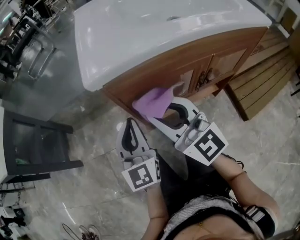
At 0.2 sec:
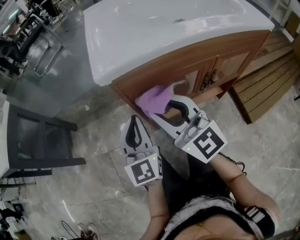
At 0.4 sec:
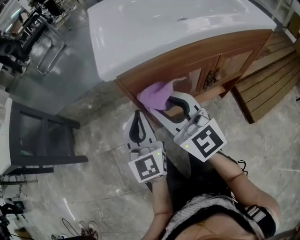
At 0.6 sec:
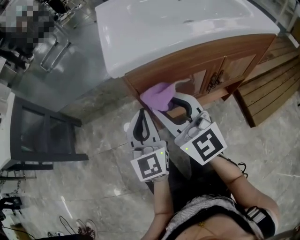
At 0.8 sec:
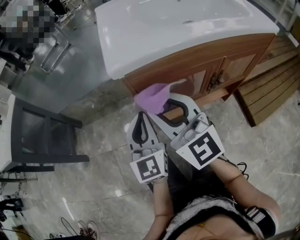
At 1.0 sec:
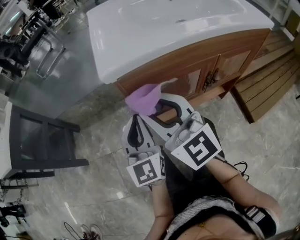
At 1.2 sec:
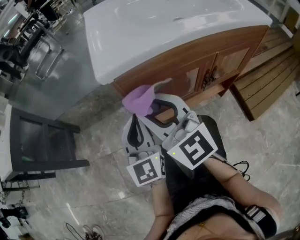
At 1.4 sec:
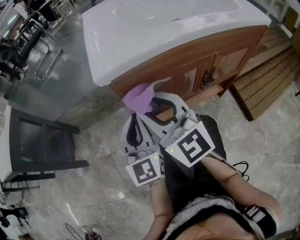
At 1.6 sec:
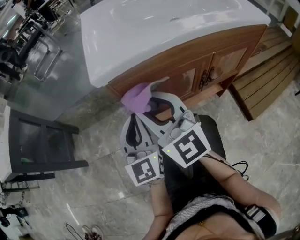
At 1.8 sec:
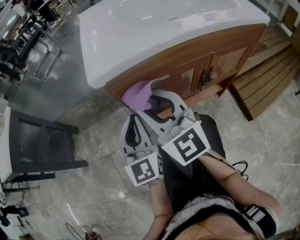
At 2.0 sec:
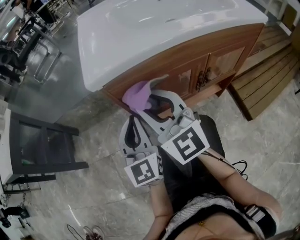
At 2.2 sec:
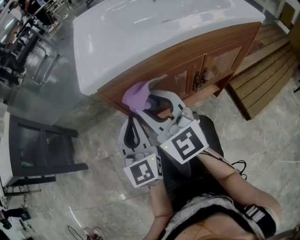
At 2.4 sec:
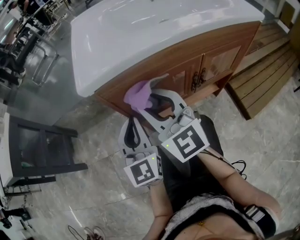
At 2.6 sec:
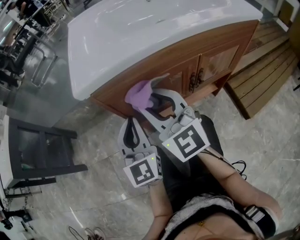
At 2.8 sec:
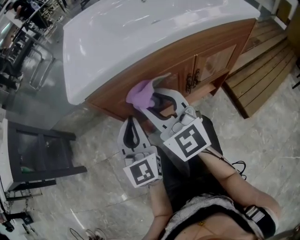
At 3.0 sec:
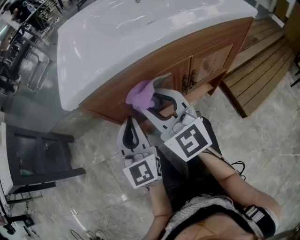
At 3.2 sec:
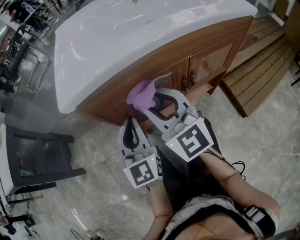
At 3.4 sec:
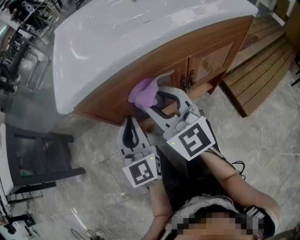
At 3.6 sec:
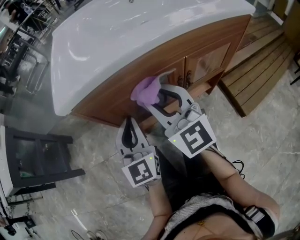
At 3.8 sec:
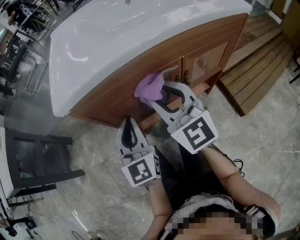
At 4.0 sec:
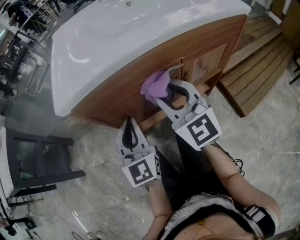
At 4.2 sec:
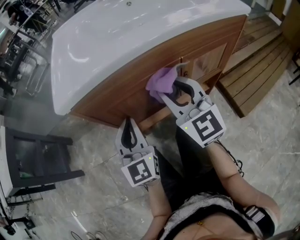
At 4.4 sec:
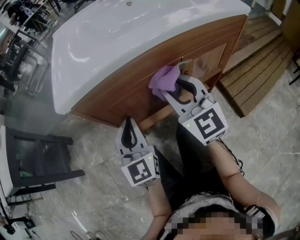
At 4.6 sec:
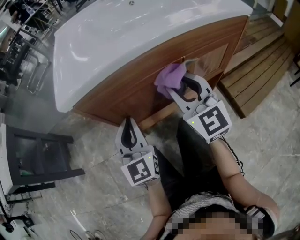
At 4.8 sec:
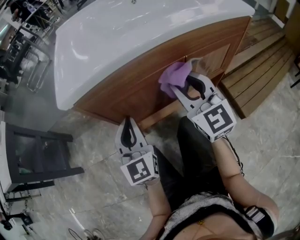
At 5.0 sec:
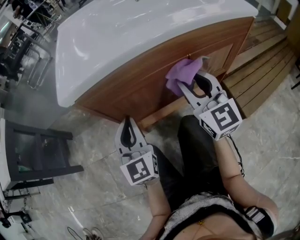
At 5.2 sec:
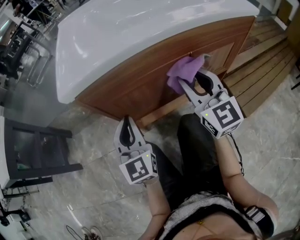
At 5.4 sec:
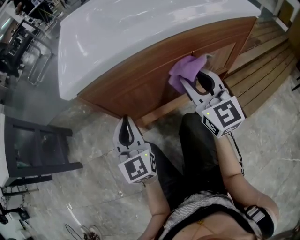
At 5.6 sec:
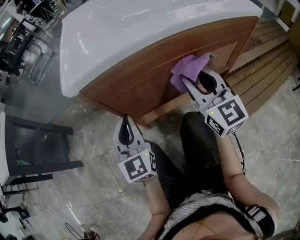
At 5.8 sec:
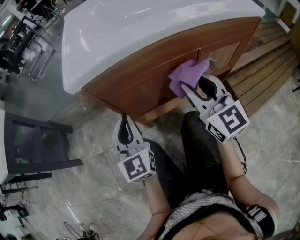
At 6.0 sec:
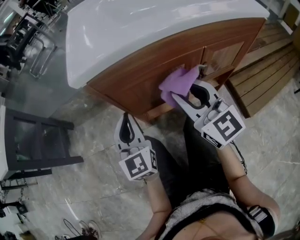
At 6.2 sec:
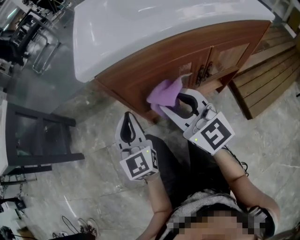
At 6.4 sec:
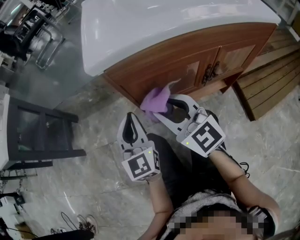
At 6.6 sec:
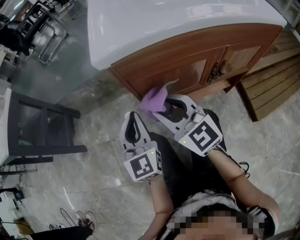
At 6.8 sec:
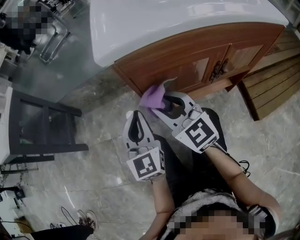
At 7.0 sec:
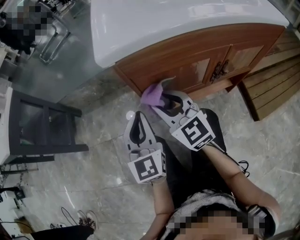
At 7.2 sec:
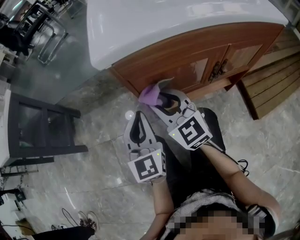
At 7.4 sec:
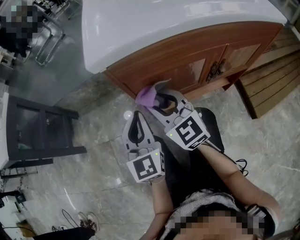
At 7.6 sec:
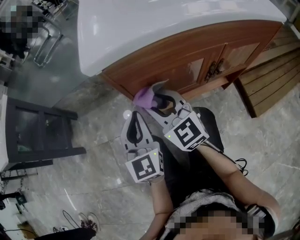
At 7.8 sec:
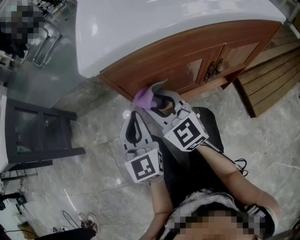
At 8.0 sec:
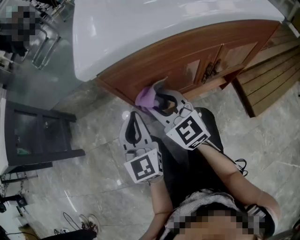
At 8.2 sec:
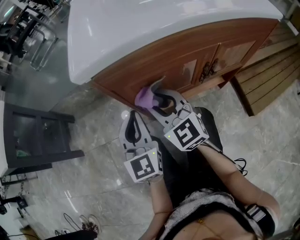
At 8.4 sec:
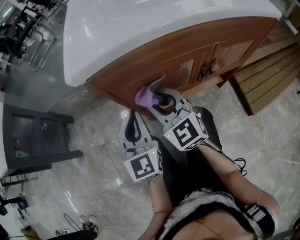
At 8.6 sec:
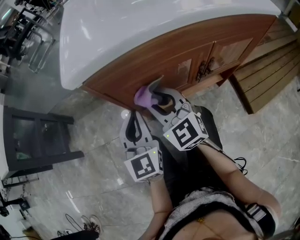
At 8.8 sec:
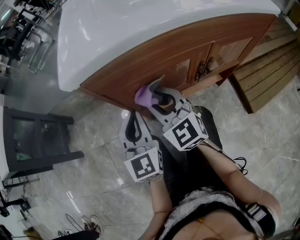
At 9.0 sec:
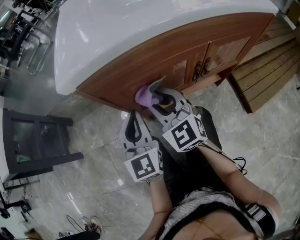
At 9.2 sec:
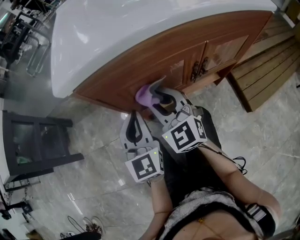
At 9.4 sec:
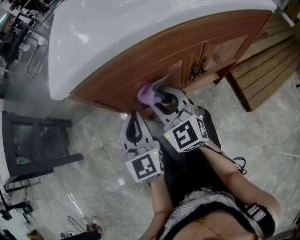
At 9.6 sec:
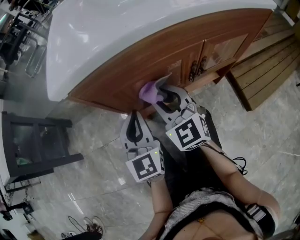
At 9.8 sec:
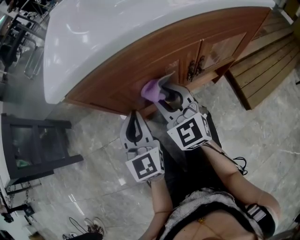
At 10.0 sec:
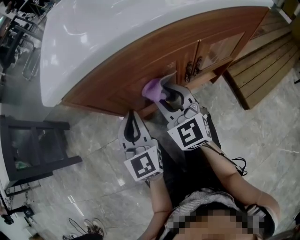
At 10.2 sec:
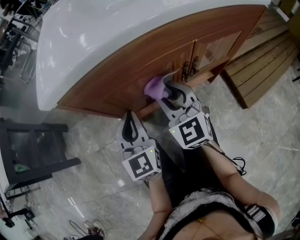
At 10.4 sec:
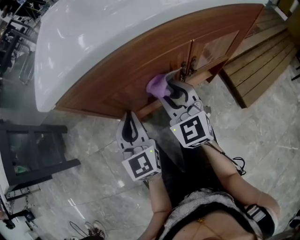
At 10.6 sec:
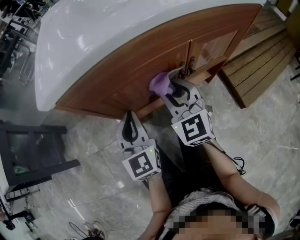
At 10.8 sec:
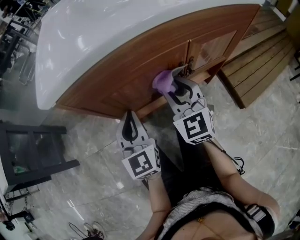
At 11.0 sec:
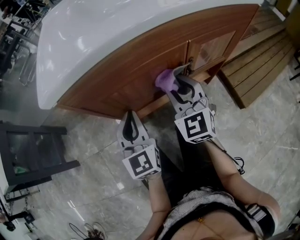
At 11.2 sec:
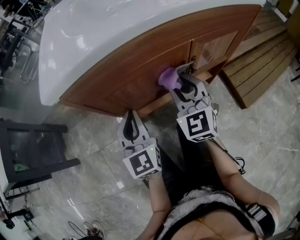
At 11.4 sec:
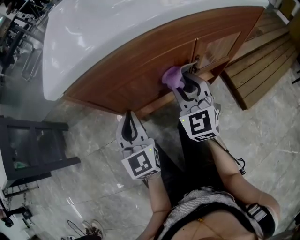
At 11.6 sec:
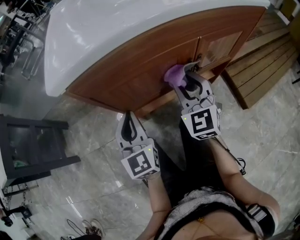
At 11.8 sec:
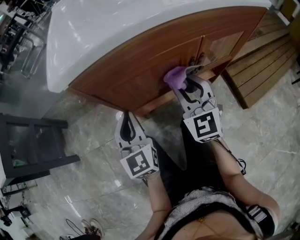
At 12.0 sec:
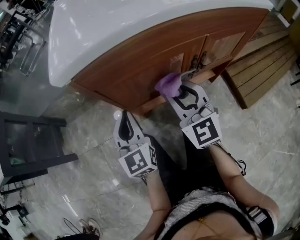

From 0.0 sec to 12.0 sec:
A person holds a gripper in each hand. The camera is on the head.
From 0.0 sec to 1.6 sec: There are only small adjustments of the grippers.
From 1.6 sec to 3.0 sec: Both grippers travel together to the right, roughly 5 cm.
From 3.0 sec to 4.4 sec: The right gripper moves to the right, approximately 10 cm.
From 4.4 sec to 6.0 sec: The right gripper ends up approximately 5 cm from where it was. The left gripper is displaced to the left by approximately 5 cm.
From 6.0 sec to 7.6 sec: The right gripper travels to the left, downward and forward by roughly 15 cm.
From 7.6 sec to 9.0 sec: The right gripper travels to the right by approximately 5 cm.
From 9.0 sec to 10.4 sec: The right gripper goes about 10 cm to the right.
From 10.4 sec to 12.0 sec: The left gripper shifts roughly 5 cm to the left.

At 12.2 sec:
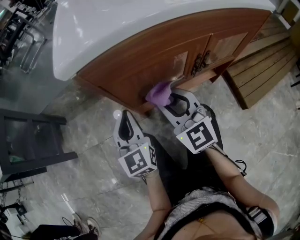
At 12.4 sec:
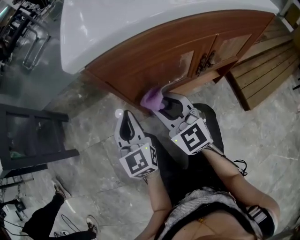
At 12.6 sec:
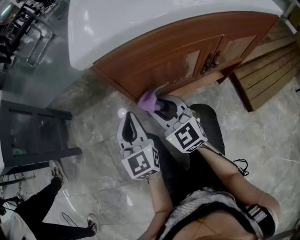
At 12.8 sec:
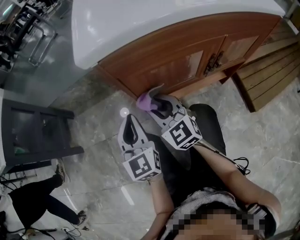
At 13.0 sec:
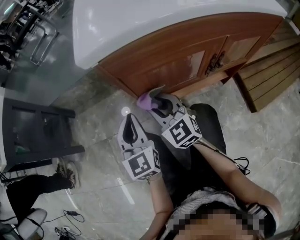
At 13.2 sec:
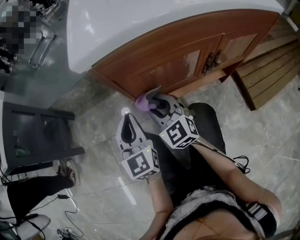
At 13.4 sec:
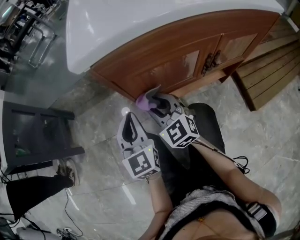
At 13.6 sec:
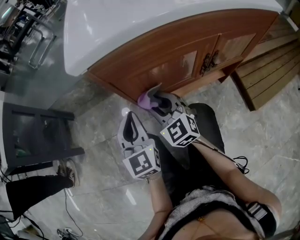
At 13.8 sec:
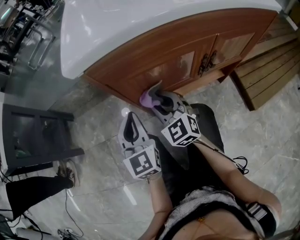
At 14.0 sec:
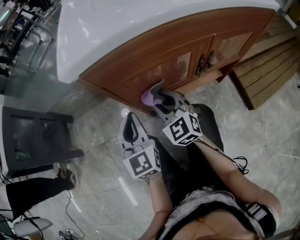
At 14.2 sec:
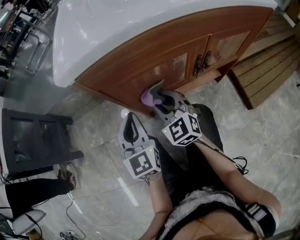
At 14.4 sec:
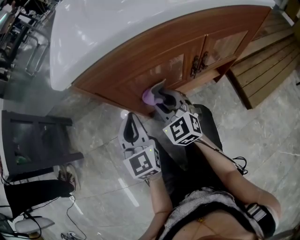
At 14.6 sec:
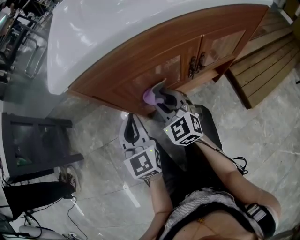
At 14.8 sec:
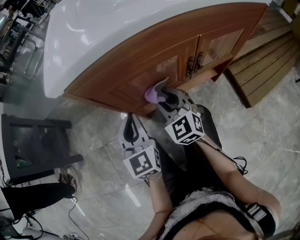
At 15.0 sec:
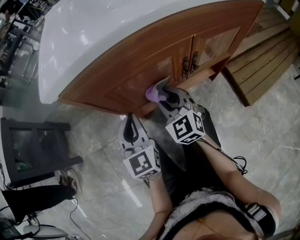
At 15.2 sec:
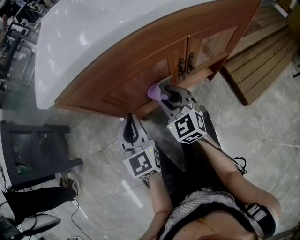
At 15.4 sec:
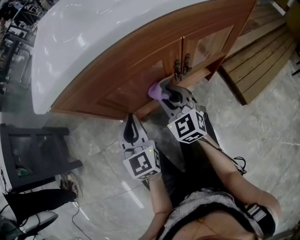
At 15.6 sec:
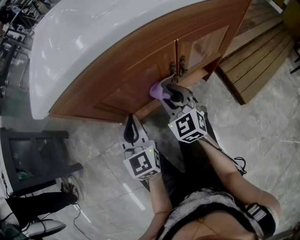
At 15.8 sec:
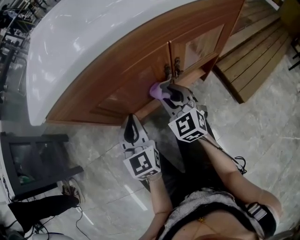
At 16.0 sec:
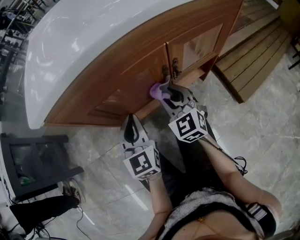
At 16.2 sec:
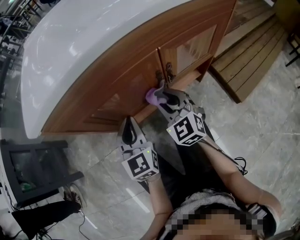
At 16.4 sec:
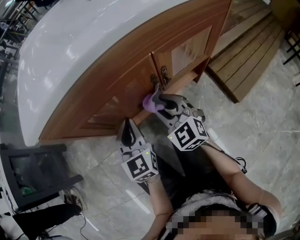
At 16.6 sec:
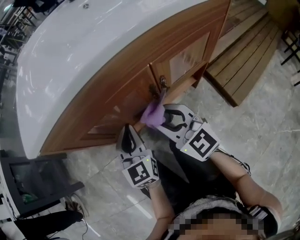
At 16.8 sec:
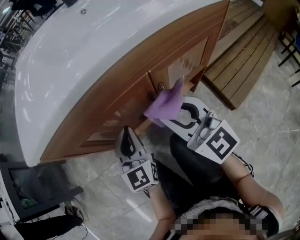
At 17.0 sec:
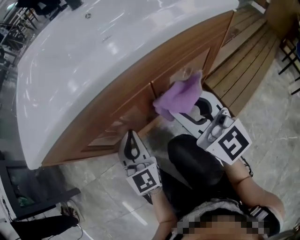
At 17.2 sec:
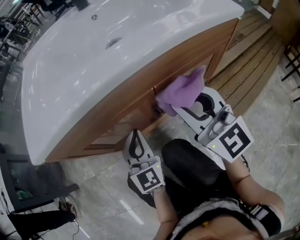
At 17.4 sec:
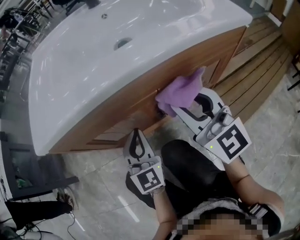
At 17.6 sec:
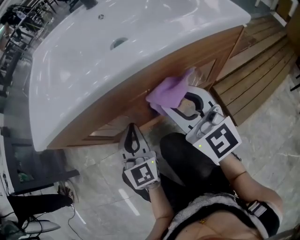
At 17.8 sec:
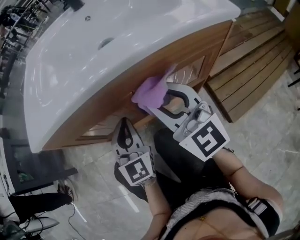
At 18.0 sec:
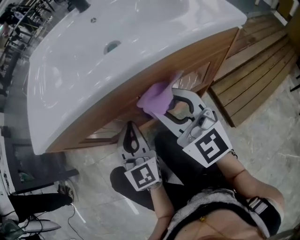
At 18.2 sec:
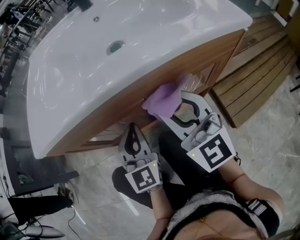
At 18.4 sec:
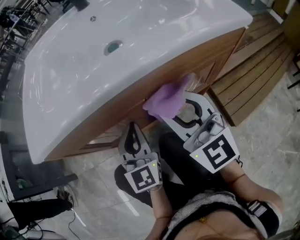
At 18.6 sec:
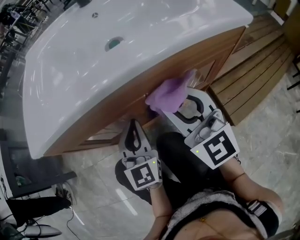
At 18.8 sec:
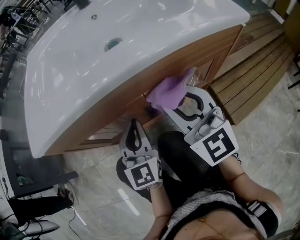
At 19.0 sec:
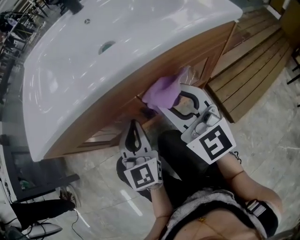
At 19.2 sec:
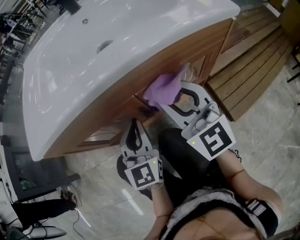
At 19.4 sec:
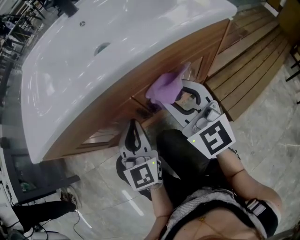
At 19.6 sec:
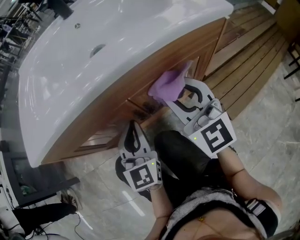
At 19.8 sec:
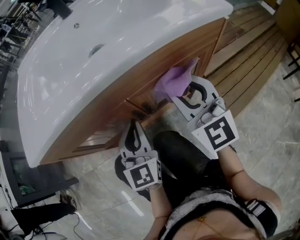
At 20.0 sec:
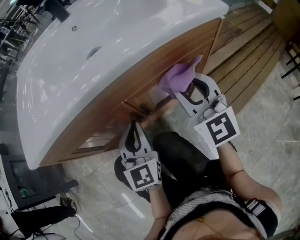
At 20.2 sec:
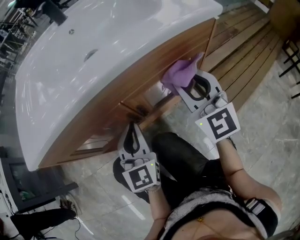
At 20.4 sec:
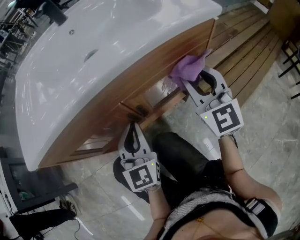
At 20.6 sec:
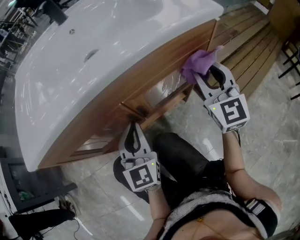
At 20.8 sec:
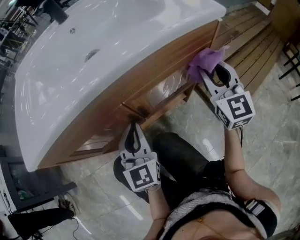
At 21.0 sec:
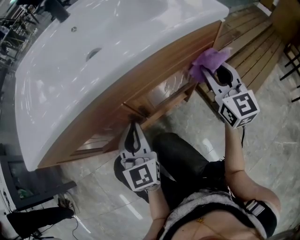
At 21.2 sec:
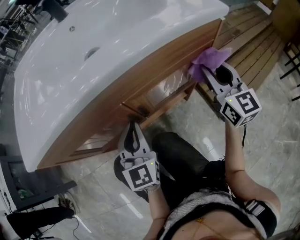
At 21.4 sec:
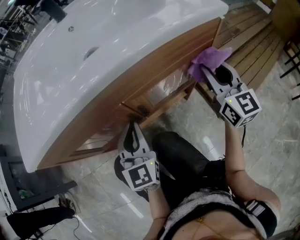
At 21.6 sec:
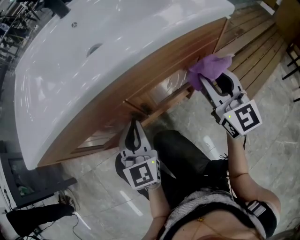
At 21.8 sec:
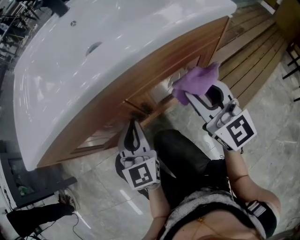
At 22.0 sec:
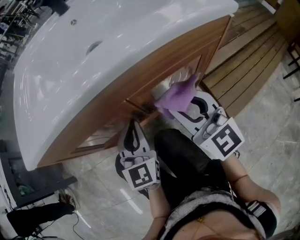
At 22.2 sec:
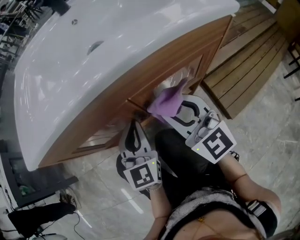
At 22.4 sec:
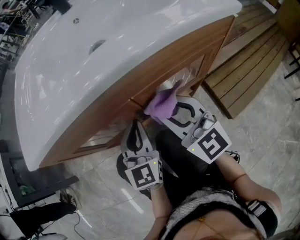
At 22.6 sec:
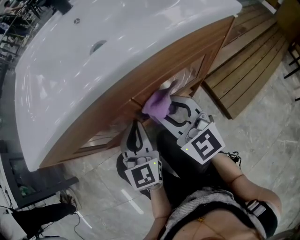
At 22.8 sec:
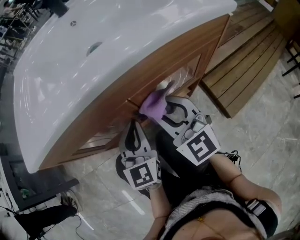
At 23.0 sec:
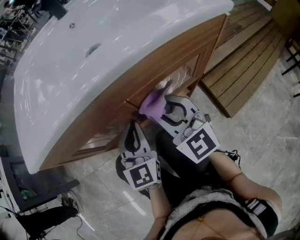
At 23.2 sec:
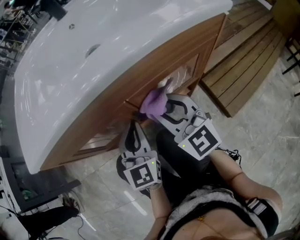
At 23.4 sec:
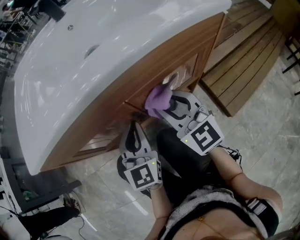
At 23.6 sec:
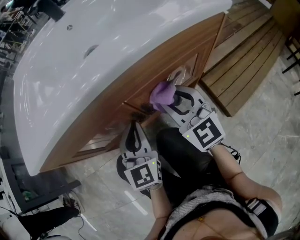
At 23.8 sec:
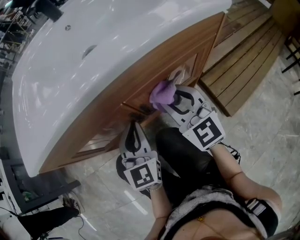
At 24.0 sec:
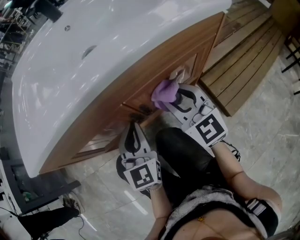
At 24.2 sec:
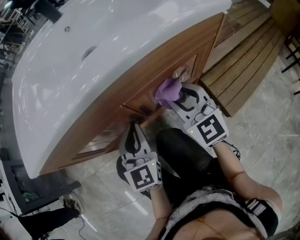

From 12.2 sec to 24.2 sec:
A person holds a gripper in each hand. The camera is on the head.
From 12.2 sec to 13.8 sec: The right gripper shifts approximately 5 cm downward.
From 13.8 sec to 15.2 sec: The left gripper moves to the right, some 5 cm. The right gripper heads to the right, covering some 10 cm.
From 15.2 sec to 16.6 sec: The left gripper shifts about 5 cm to the right; the right gripper is displaced upward by roughly 5 cm.
From 16.6 sec to 18.2 sec: The left gripper goes roughly 10 cm to the right and upward. The right gripper goes roughly 15 cm upward and to the right.
From 18.2 sec to 19.8 sec: The right gripper shifts approximately 10 cm to the right.
From 19.8 sec to 21.2 sec: The right gripper is displaced to the right by some 15 cm, and rotates approximately 20 degrees.
From 21.2 sec to 22.6 sec: The right gripper is displaced to the left by about 20 cm, and swivels about 30 degrees.
From 22.6 sec to 24.2 sec: The right gripper is displaced to the right by about 5 cm.
